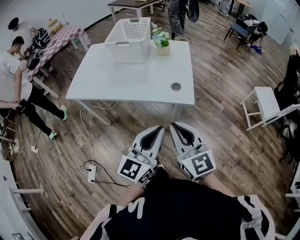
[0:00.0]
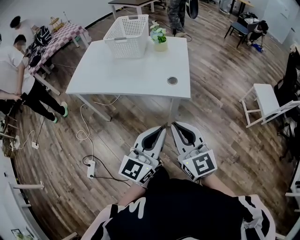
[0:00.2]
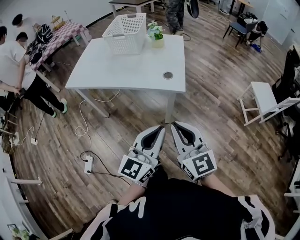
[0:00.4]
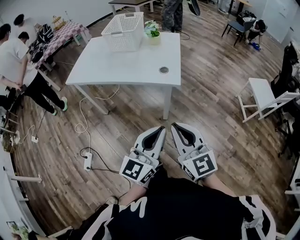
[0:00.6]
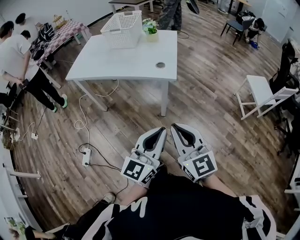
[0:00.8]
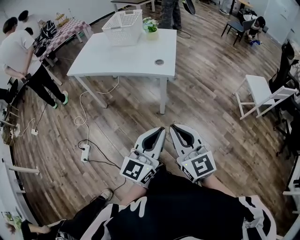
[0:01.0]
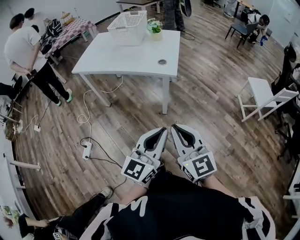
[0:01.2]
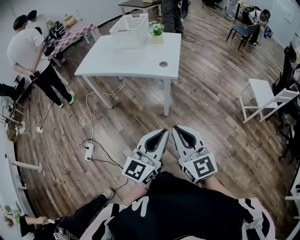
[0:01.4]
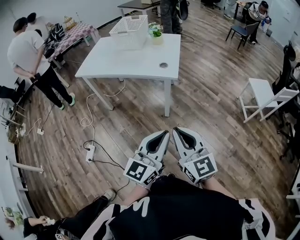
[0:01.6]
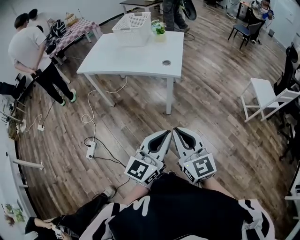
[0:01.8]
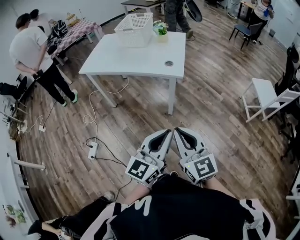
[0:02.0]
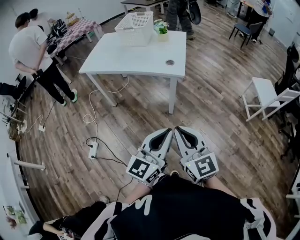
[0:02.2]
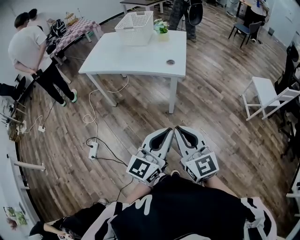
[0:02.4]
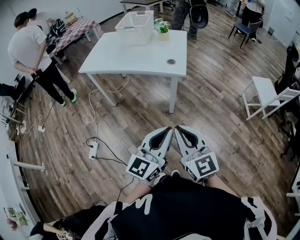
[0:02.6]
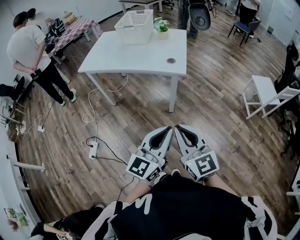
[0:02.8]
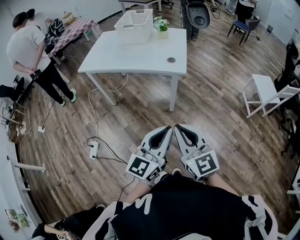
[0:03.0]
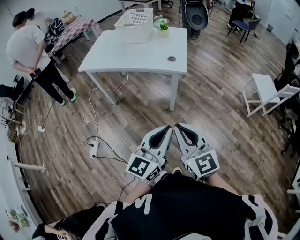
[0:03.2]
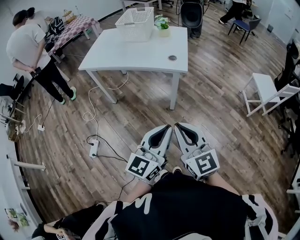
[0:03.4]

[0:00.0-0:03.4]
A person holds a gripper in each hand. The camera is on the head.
0:00.0 to 0:01.6: The two grippers go roughly 25 cm backward and to the right.
0:01.6 to 0:03.4: Both grippers travel together to the left, approximately 5 cm.

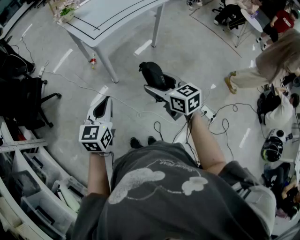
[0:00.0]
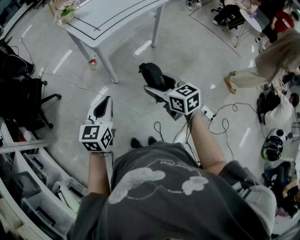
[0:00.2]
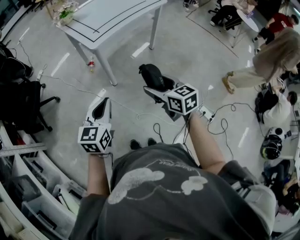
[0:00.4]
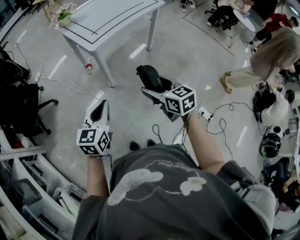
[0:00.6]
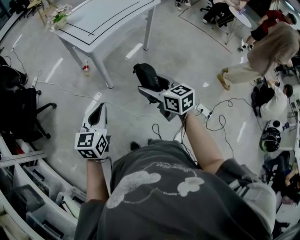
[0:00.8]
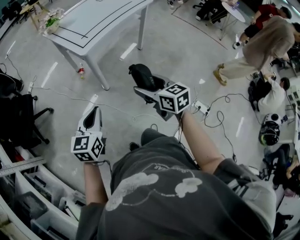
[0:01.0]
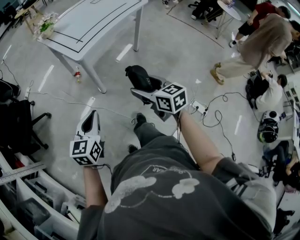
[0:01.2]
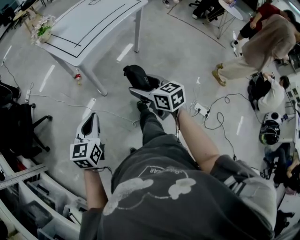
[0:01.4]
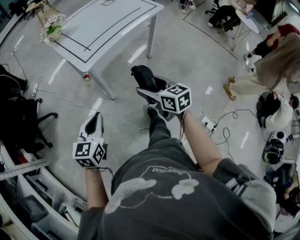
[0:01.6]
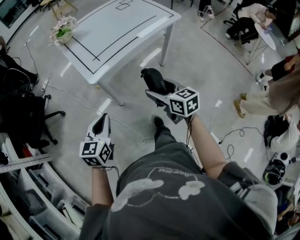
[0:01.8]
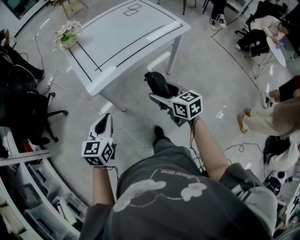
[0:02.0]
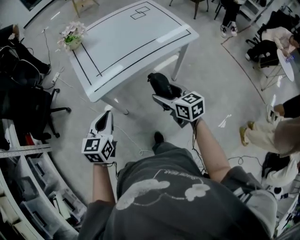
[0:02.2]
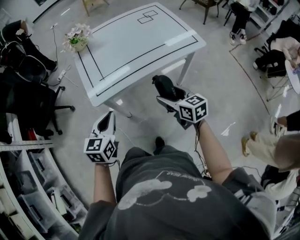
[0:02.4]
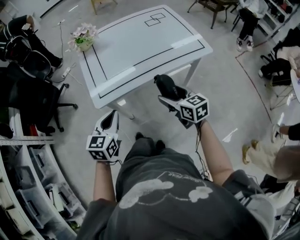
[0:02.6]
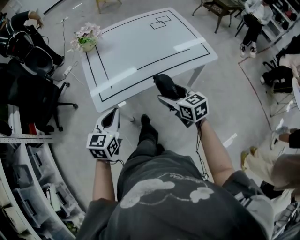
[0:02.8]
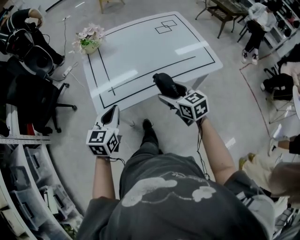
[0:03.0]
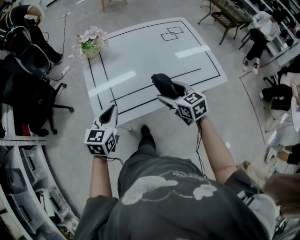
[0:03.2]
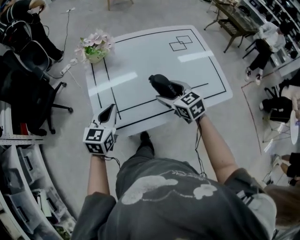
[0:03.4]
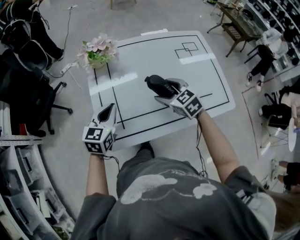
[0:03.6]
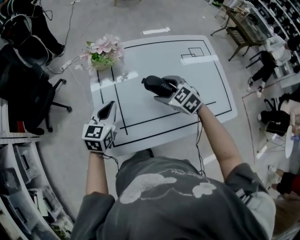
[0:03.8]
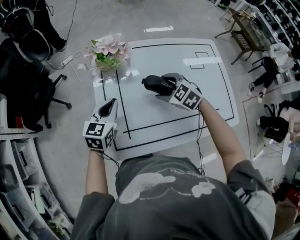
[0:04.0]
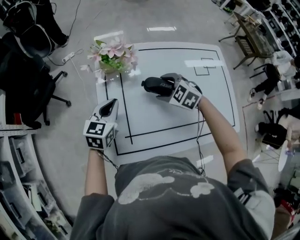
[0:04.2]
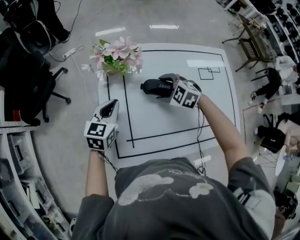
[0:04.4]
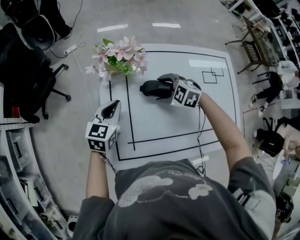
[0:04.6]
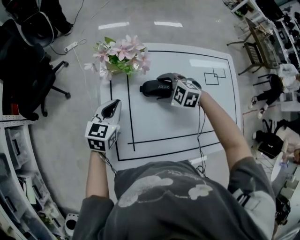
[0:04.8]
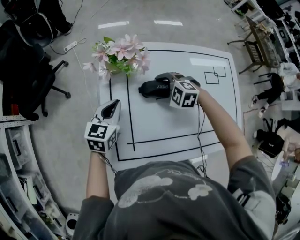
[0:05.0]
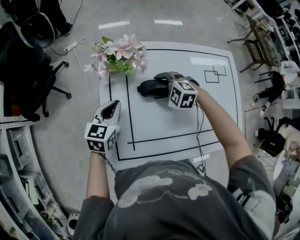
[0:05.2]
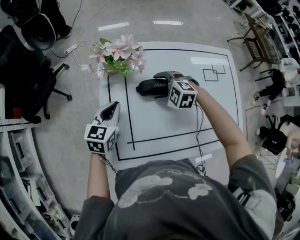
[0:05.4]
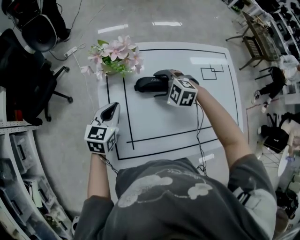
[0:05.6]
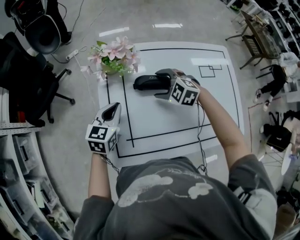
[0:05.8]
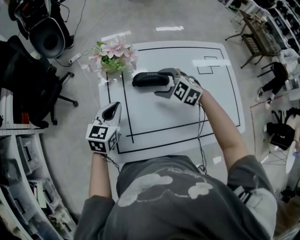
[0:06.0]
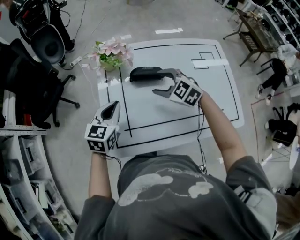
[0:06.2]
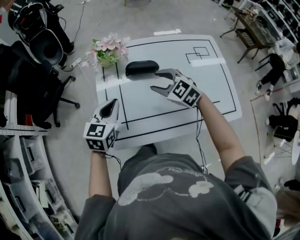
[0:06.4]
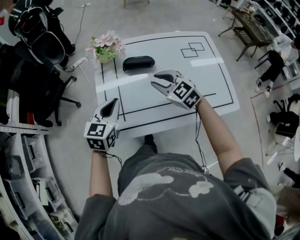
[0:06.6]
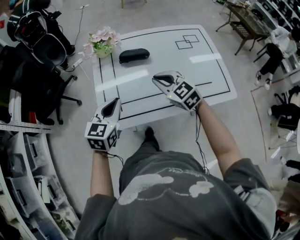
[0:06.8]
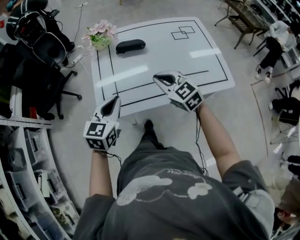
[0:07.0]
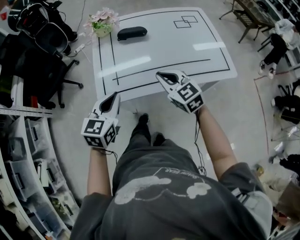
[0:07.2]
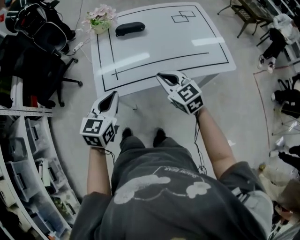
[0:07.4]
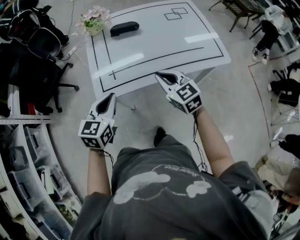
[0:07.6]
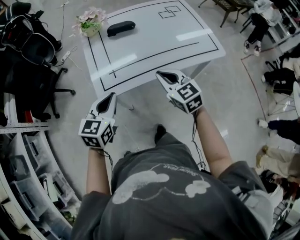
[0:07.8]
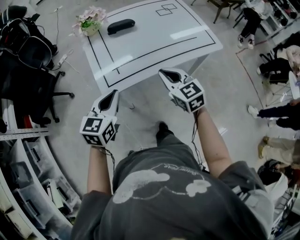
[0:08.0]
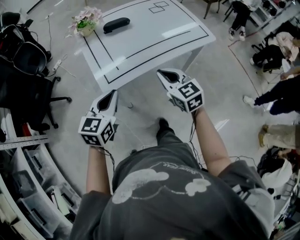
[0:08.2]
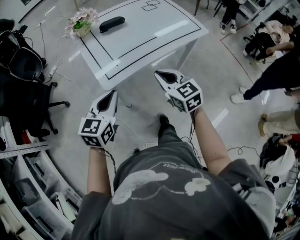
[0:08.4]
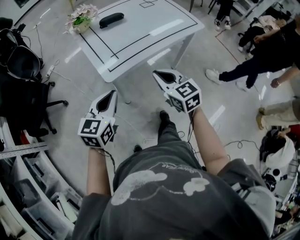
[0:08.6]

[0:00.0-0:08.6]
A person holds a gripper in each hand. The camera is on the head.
0:00.0 to 0:01.4: The two grippers go roughly 5 cm forward.
0:01.4 to 0:02.8: The right gripper changes place by about 40 cm, and swivels about 30 degrees; the left gripper shifts by roughly 35 cm, and rotates approximately 20 degrees.
0:02.8 to 0:04.4: The two grippers go some 40 cm forward. The right gripper tilts its fingers some 30 degrees downward.
0:04.4 to 0:05.8: The grippers stay close to where they were, moving slightly.
0:05.8 to 0:07.2: The two grippers go approximately 30 cm backward. The right gripper turns by about 50 degrees, and closes up.
0:07.2 to 0:08.6: The right gripper changes place by approximately 25 cm, and turns by about 30 degrees, while the left gripper shifts by about 20 cm, and changes its angle by roughly 20 degrees.

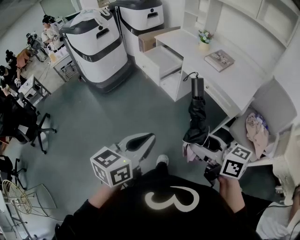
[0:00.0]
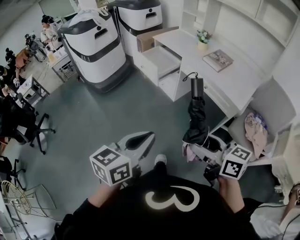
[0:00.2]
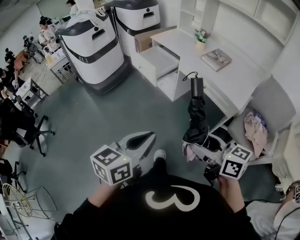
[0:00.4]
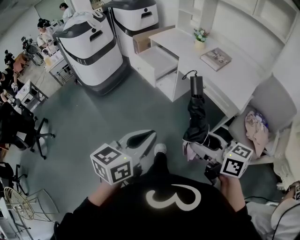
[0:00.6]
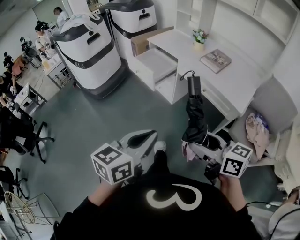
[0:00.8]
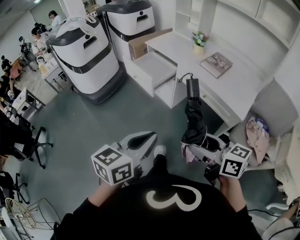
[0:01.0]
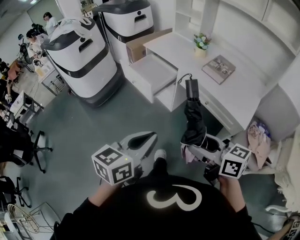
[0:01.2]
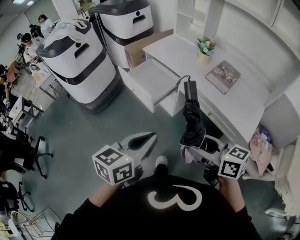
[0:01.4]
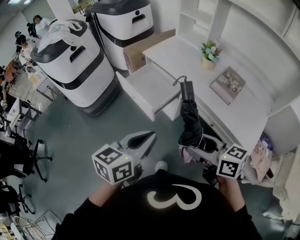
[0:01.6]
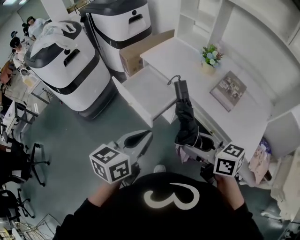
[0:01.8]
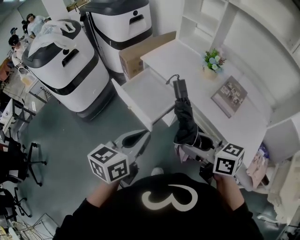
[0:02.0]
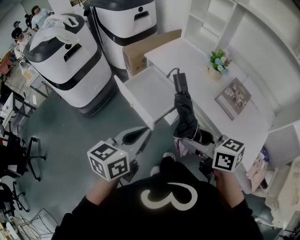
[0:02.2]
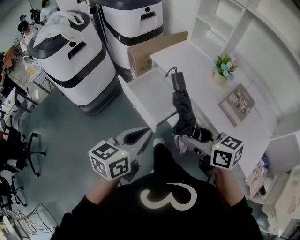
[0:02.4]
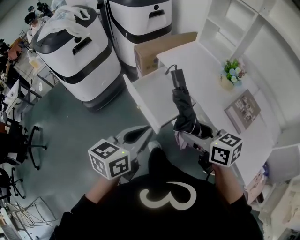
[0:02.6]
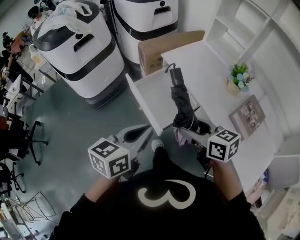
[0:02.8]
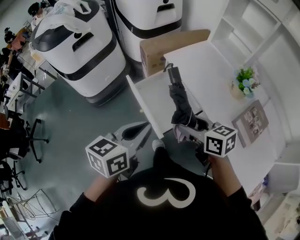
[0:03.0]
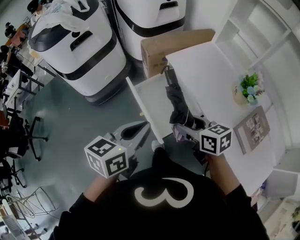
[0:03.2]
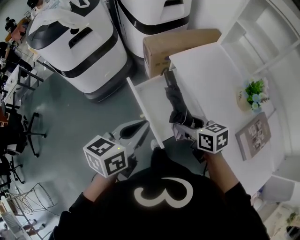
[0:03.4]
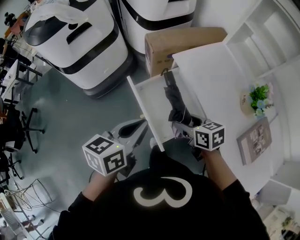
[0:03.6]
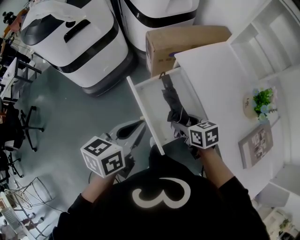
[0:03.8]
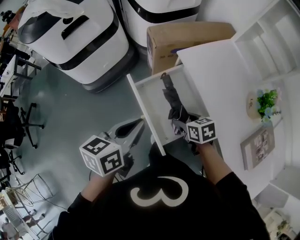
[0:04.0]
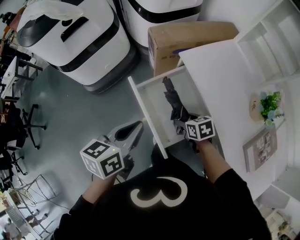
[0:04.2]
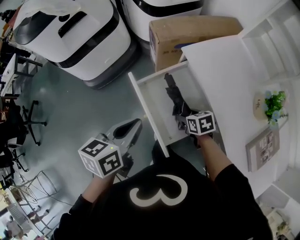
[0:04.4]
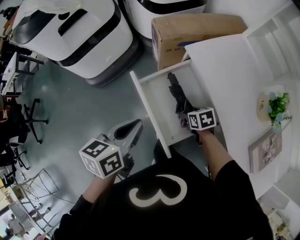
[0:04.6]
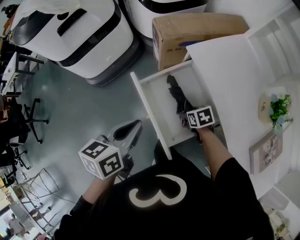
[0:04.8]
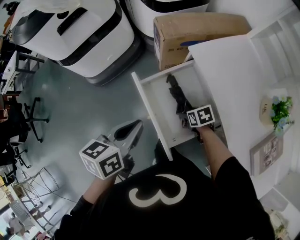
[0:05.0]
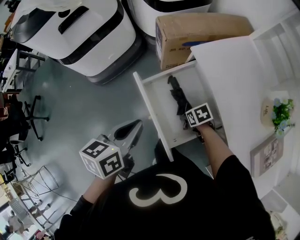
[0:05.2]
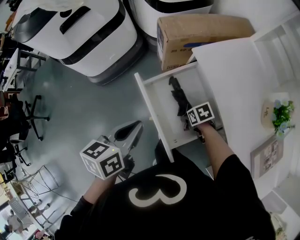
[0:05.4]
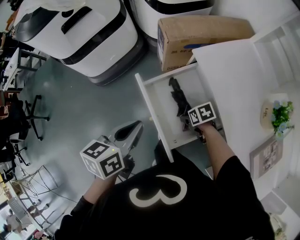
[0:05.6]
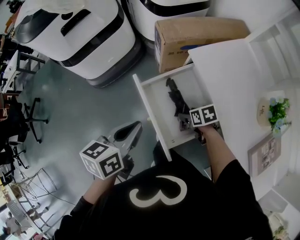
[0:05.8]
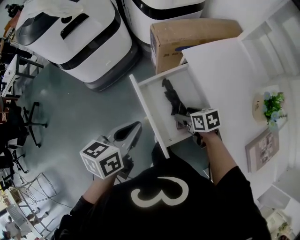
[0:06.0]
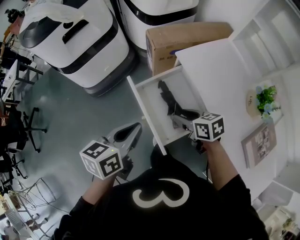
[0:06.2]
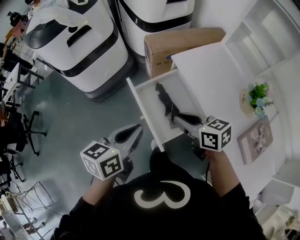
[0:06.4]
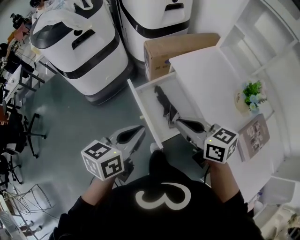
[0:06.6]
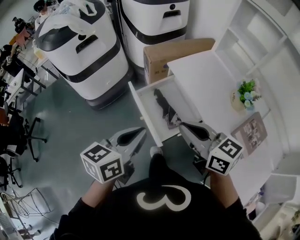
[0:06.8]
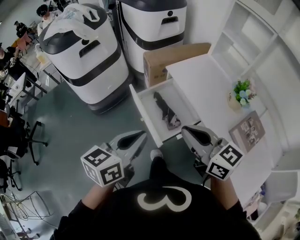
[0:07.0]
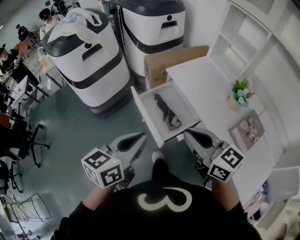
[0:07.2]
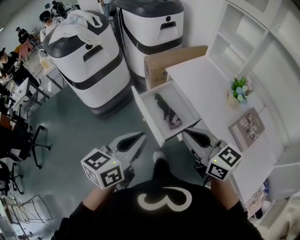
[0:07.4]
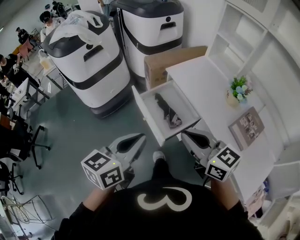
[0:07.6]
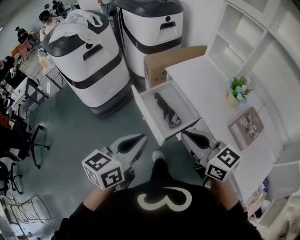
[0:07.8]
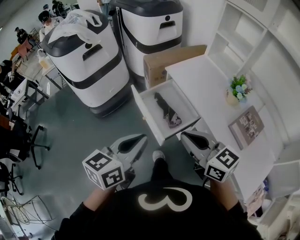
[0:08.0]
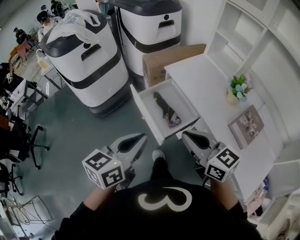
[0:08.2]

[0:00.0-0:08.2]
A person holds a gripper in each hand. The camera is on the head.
0:00.0 to 0:01.6: Both grippers move forward, roughly 40 cm.
0:01.6 to 0:03.2: The two grippers go some 30 cm forward.
0:03.2 to 0:05.0: The left gripper goes roughly 20 cm downward, forward and to the left, while the right gripper shifts some 30 cm downward and forward, and angles its fingers downward, by roughly 30 degrees.
0:05.0 to 0:06.6: The right gripper goes roughly 35 cm upward, angles its fingers upward, by about 40 degrees, and closes. Meanwhile the left gripper shifts by some 15 cm.
0:06.6 to 0:08.2: The grippers both shift backward and upward by approximately 15 cm.

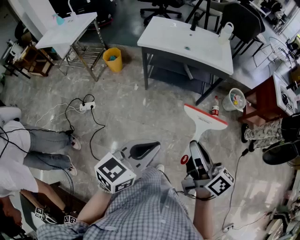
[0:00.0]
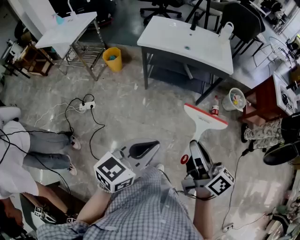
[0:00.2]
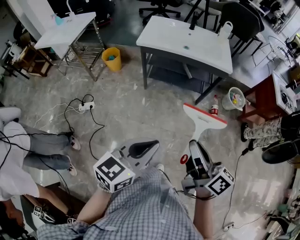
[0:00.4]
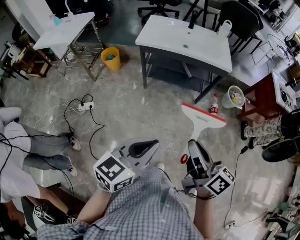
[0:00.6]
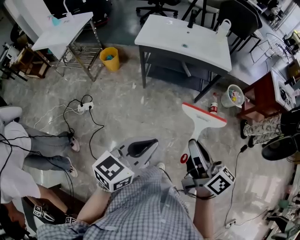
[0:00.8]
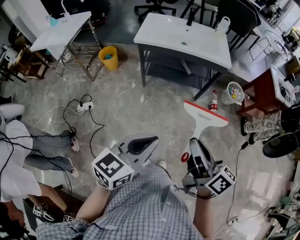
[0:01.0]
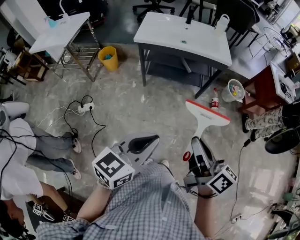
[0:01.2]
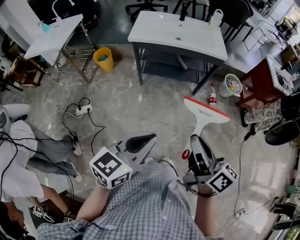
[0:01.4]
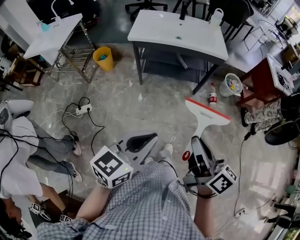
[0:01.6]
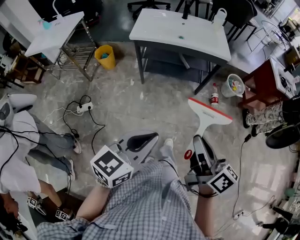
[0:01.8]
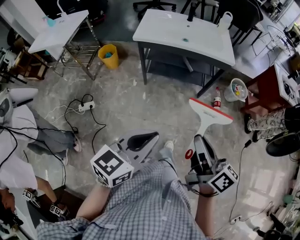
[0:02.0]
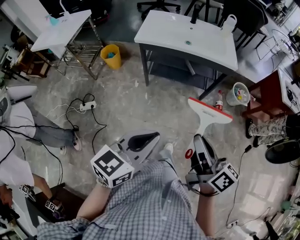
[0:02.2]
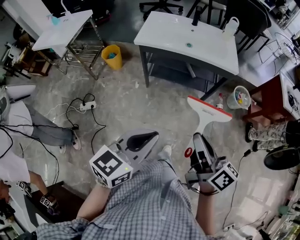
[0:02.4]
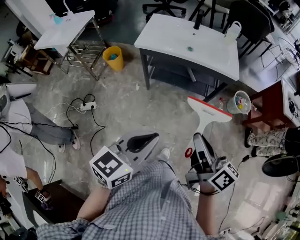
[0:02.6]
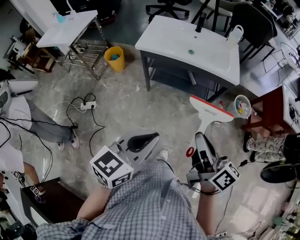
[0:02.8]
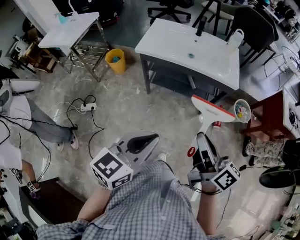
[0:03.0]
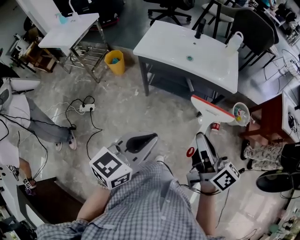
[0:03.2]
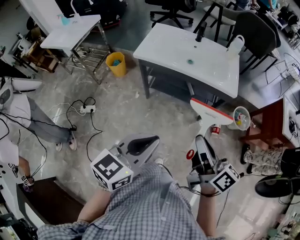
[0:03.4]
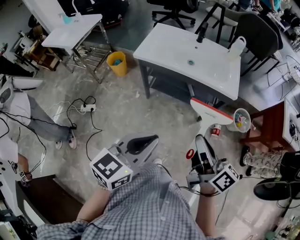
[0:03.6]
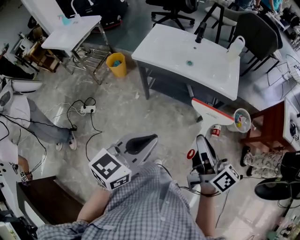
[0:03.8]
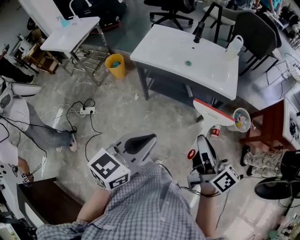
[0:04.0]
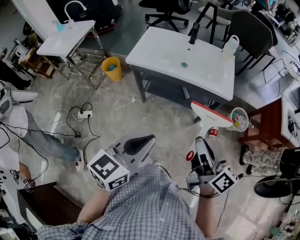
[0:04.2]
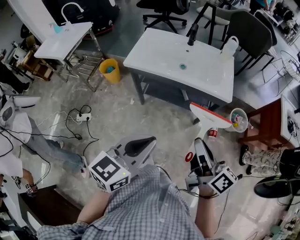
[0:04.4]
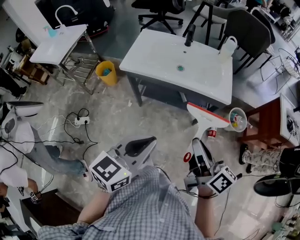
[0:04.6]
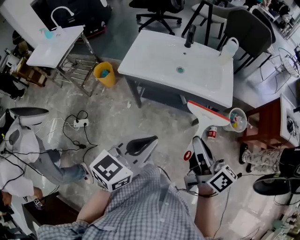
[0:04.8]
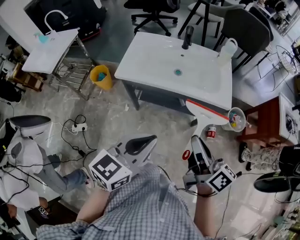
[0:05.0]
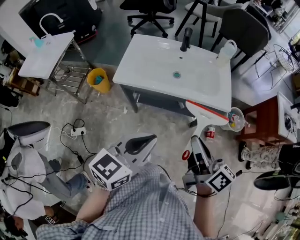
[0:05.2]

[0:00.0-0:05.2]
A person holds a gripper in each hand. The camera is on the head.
0:00.0 to 0:01.8: The grippers move only a little.
0:01.8 to 0:03.4: The left gripper travels forward and to the right by some 20 cm. The right gripper moves forward, approximately 20 cm.
0:03.4 to 0:05.2: The grippers both shift forward by some 15 cm.
